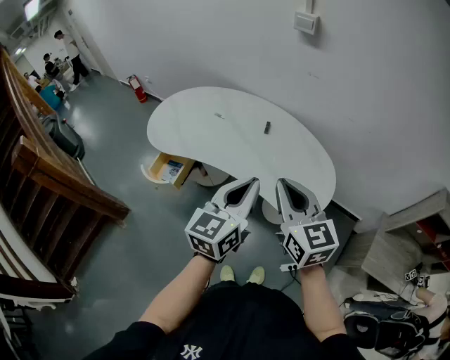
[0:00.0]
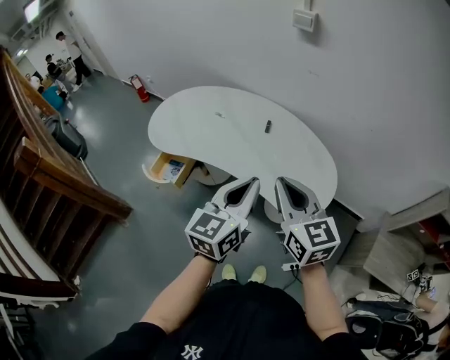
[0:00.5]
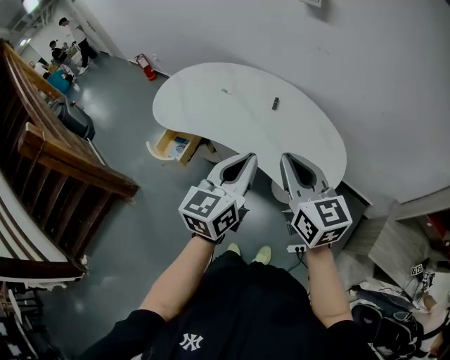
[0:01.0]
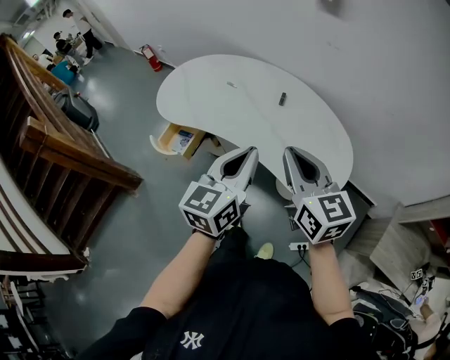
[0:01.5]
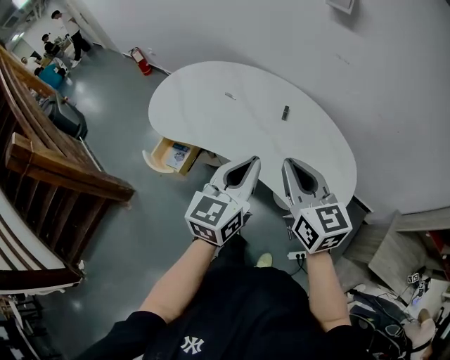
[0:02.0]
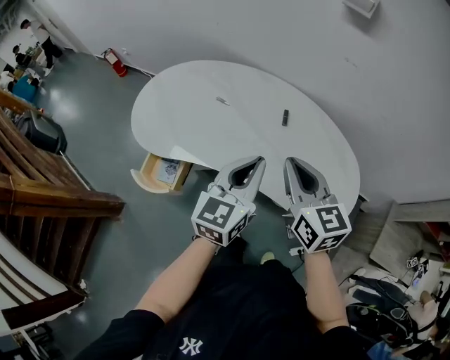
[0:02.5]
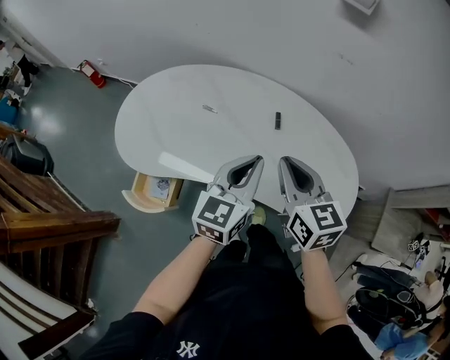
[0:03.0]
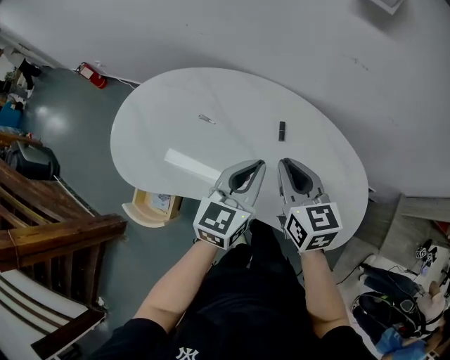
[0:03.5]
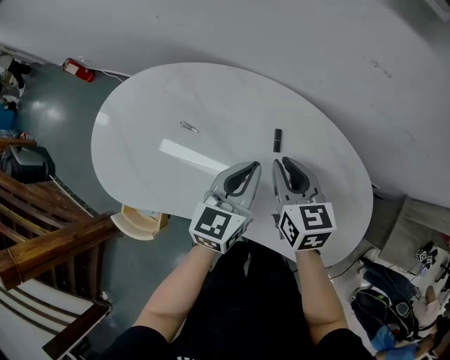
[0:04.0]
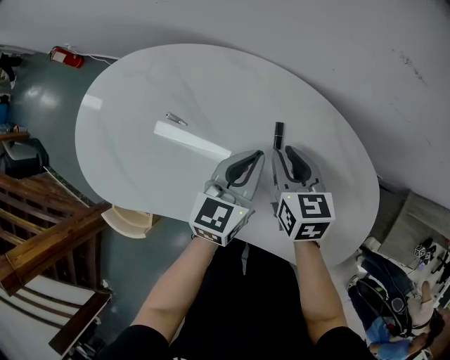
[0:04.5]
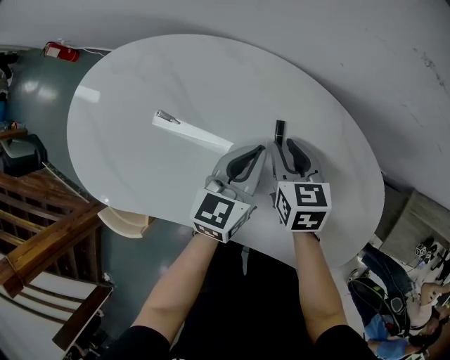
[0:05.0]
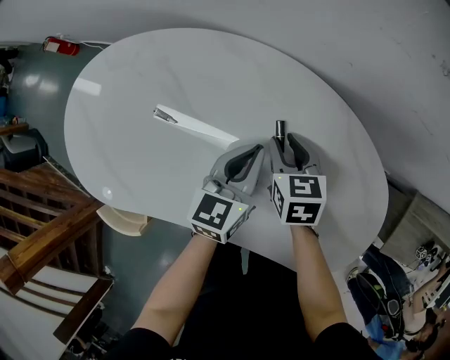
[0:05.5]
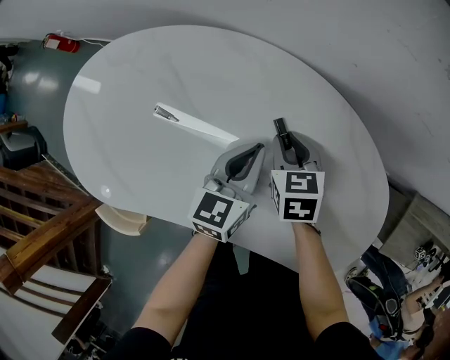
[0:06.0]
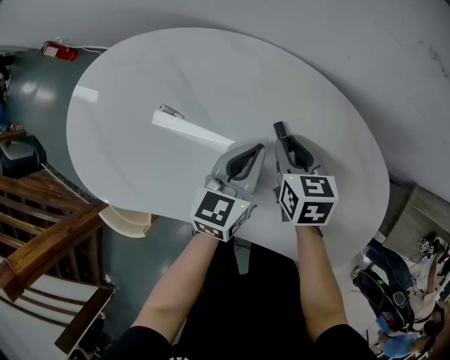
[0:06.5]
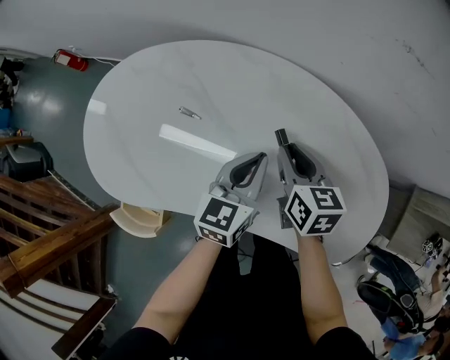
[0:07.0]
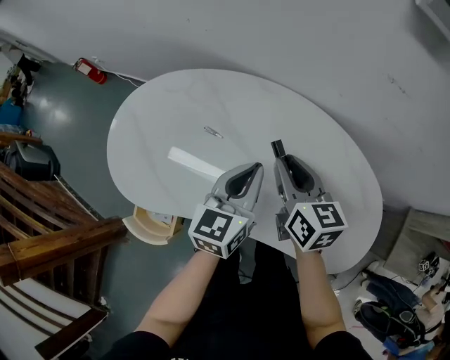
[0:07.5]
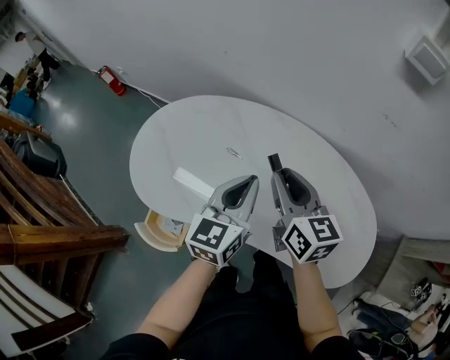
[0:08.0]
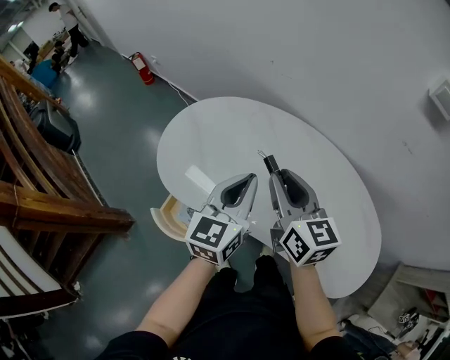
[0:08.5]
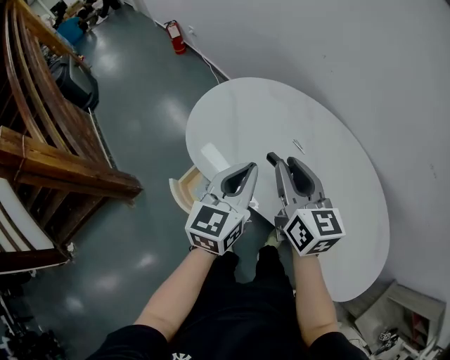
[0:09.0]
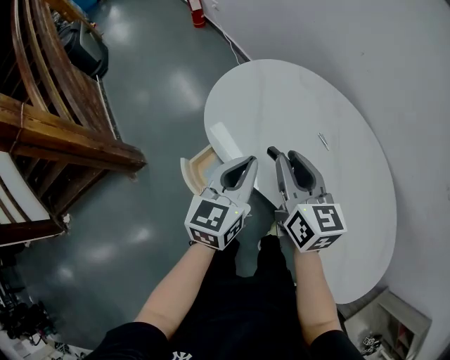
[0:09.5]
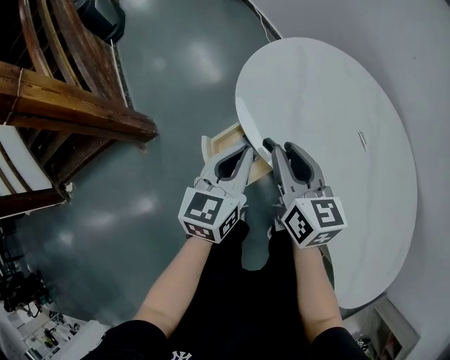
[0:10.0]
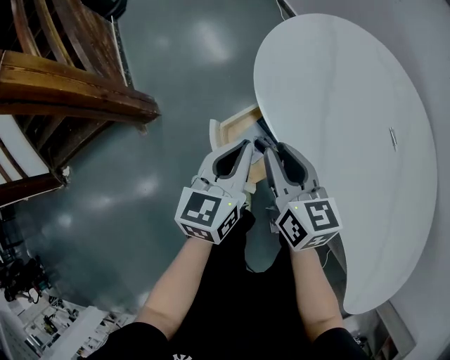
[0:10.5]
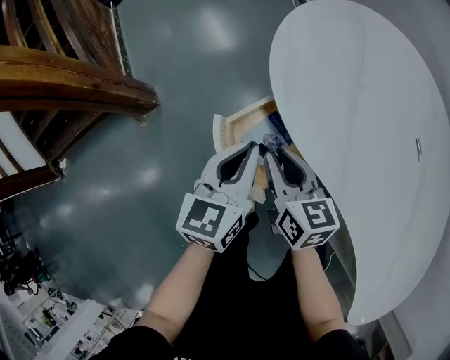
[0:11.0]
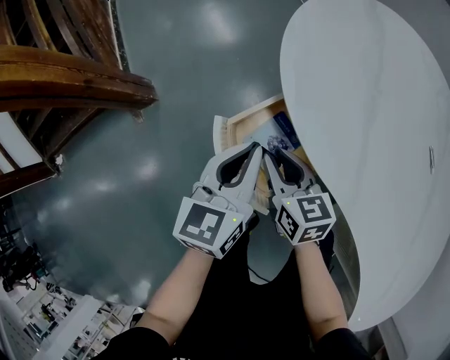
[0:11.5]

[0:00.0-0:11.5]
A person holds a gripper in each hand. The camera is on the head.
0:00.0 to 0:02.0: Both grippers move forward, roughly 10 cm.
0:02.0 to 0:04.0: The two grippers go approximately 35 cm forward and downward. The right gripper turns by about 30 degrees.
0:04.0 to 0:06.0: The two grippers go about 15 cm downward and forward. The right gripper turns by roughly 20 degrees.
0:06.0 to 0:07.5: The left gripper heads upward and backward, covering roughly 15 cm; the right gripper heads upward, covering some 20 cm, and changes its angle by roughly 30 degrees.
0:07.5 to 0:09.5: The left gripper goes upward and returns, roughly 10 cm each way, and swivels some 30 degrees. The right gripper ends up roughly 35 cm from where it was, and turns by roughly 30 degrees.
0:09.5 to 0:11.5: Both grippers move downward and to the left, approximately 35 cm. The right gripper changes its angle by roughly 30 degrees.

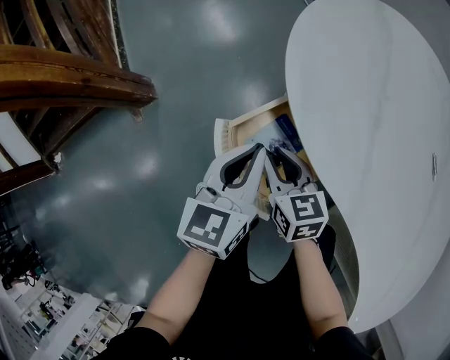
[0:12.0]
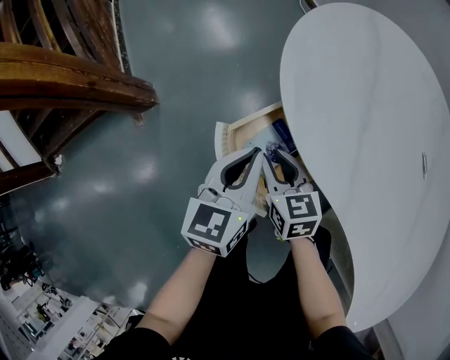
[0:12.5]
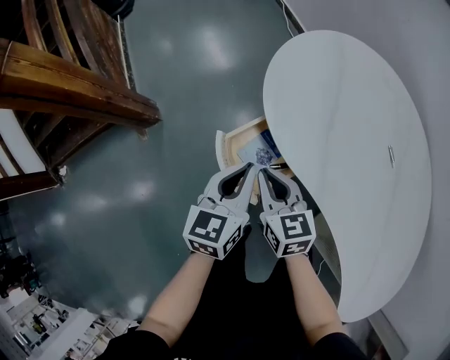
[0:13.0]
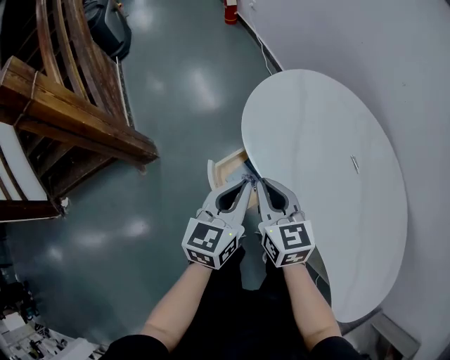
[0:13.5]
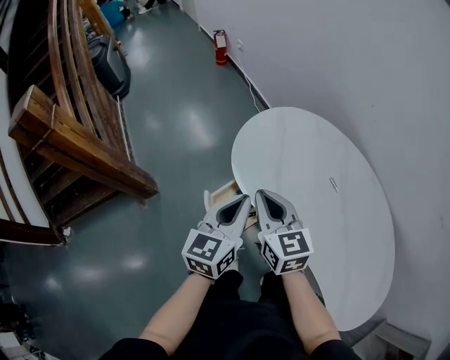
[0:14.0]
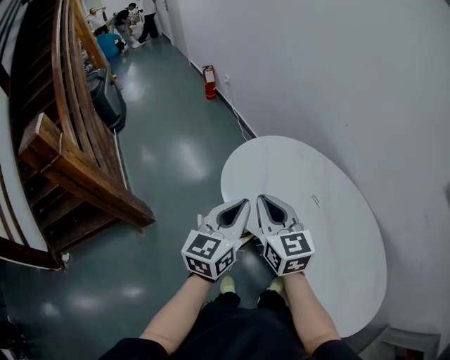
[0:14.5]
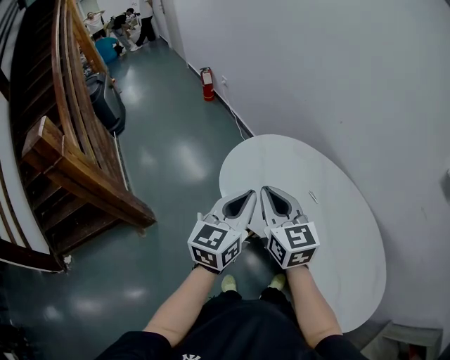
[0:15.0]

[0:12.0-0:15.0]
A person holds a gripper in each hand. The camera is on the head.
0:12.0 to 0:13.5: Both grippers travel together upward, roughly 25 cm. The right gripper closes up.
0:13.5 to 0:15.0: The two grippers go approximately 20 cm upward and to the right.

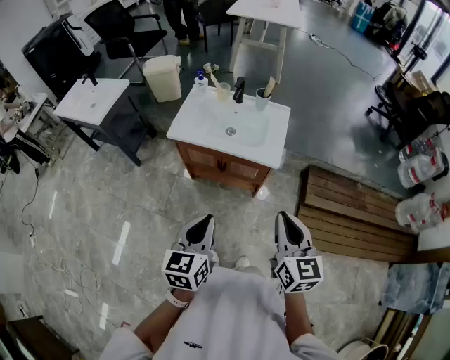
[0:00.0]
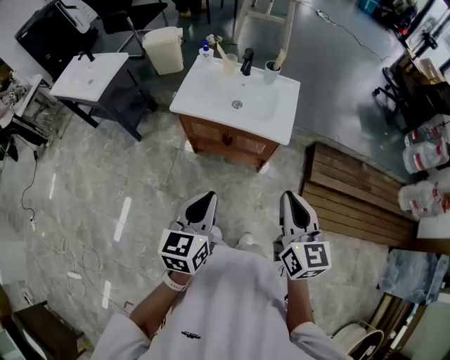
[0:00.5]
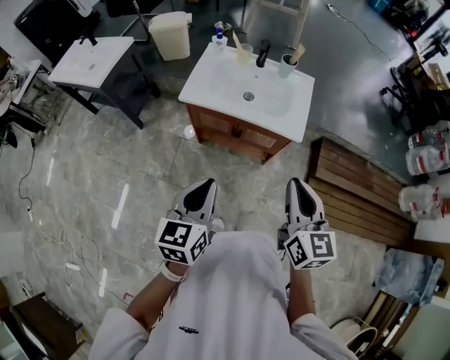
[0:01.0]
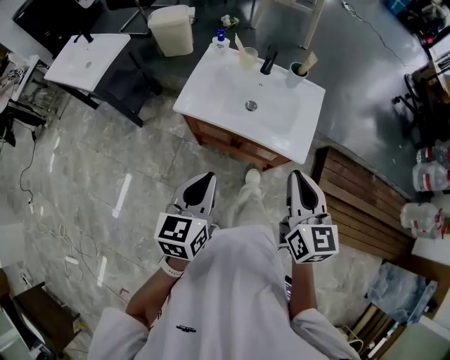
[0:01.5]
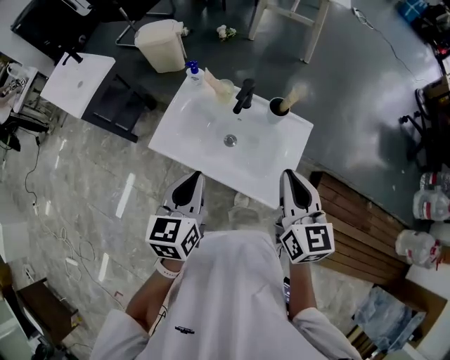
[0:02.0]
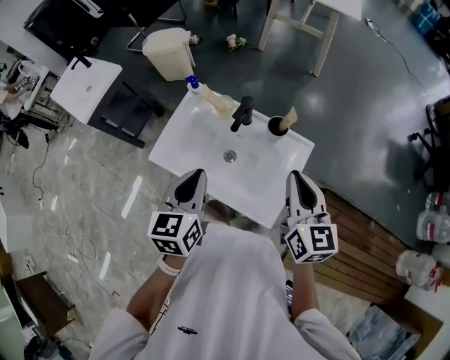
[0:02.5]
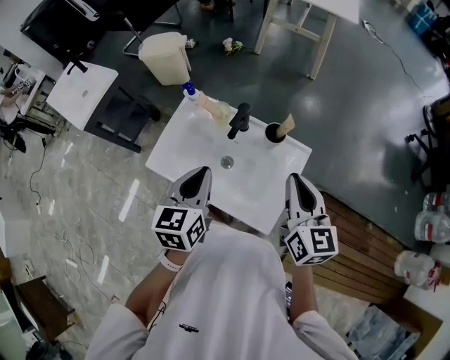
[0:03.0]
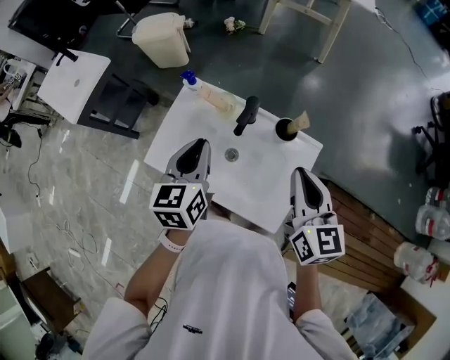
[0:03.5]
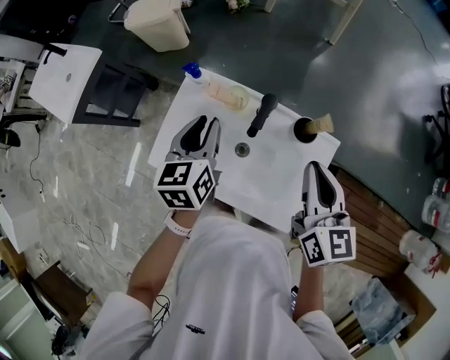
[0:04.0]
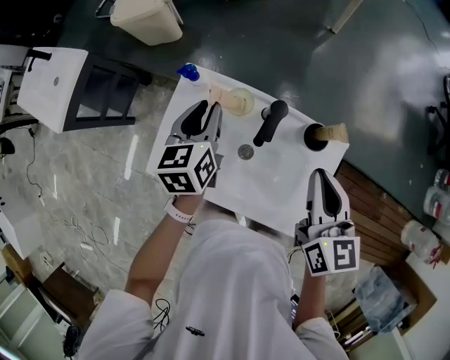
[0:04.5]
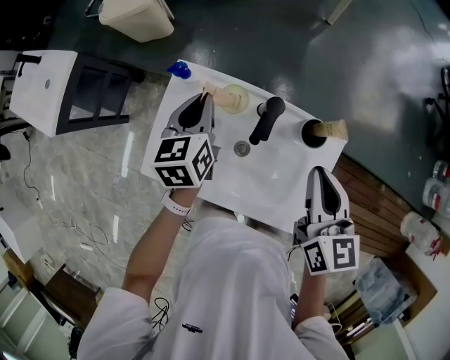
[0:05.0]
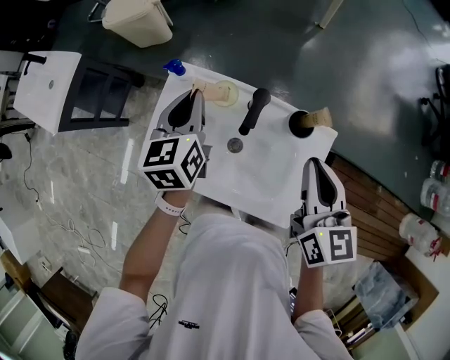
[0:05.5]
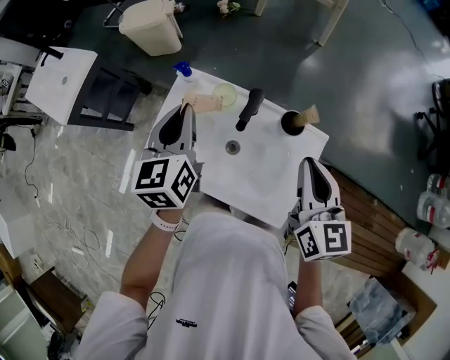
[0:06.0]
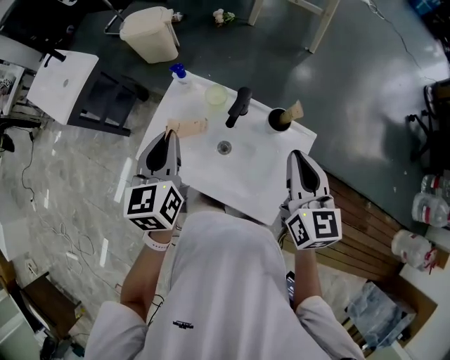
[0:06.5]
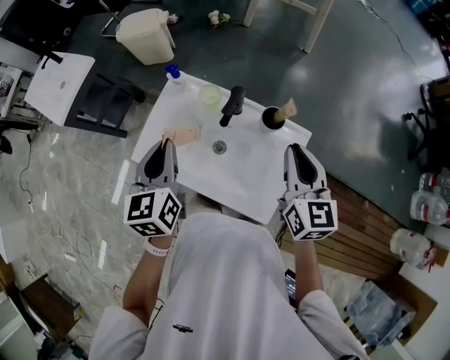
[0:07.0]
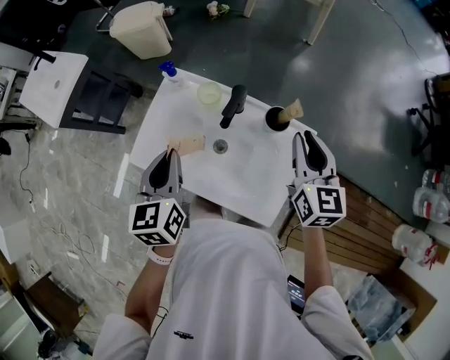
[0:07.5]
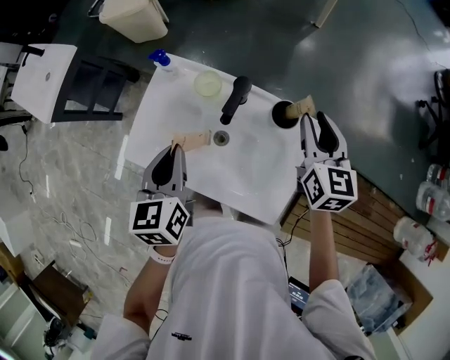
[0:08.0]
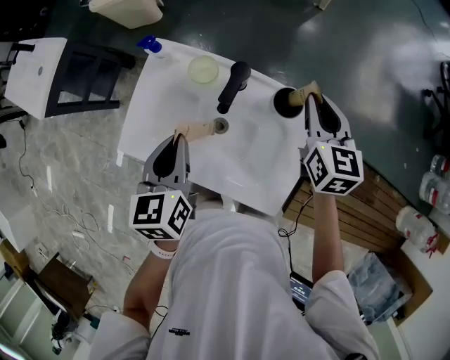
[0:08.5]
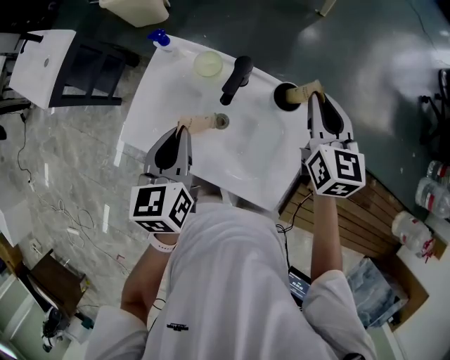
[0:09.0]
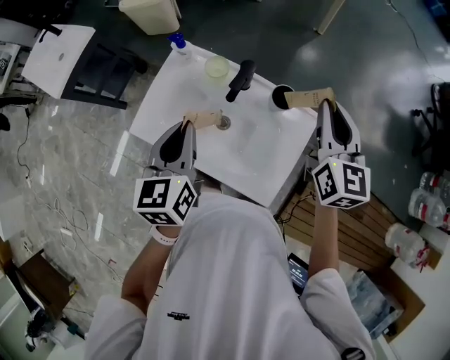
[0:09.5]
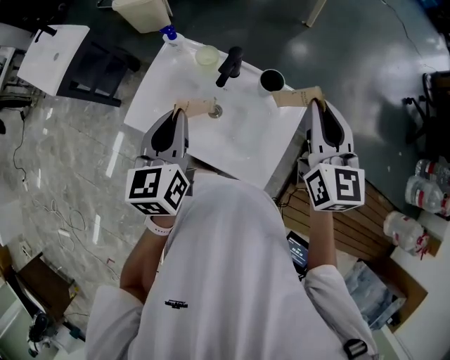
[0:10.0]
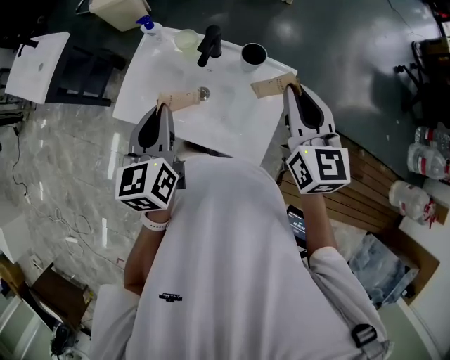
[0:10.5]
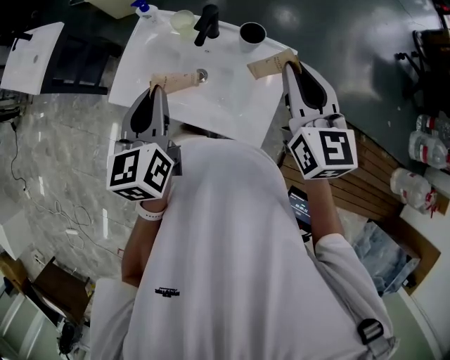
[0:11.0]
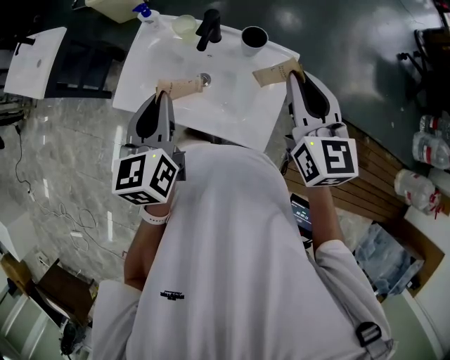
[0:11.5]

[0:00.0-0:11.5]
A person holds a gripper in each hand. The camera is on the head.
0:00.0 to 0:02.0: Both grippers move forward, about 40 cm.
0:02.0 to 0:04.0: The left gripper travels forward by some 25 cm, and opens up. The right gripper moves forward, approximately 15 cm.
0:04.0 to 0:06.0: The left gripper shifts roughly 5 cm upward, and closes its fingers.
0:06.0 to 0:07.5: The right gripper ends up roughly 5 cm from where it was. The left gripper travels backward by some 10 cm.
0:07.5 to 0:09.5: The right gripper shifts roughly 5 cm upward, while the left gripper travels downward and back again, approximately 5 cm each way.
0:09.5 to 0:11.5: The left gripper travels backward by about 5 cm. Meanwhile the right gripper moves backward, some 10 cm.
